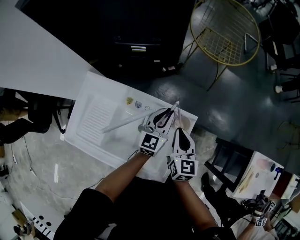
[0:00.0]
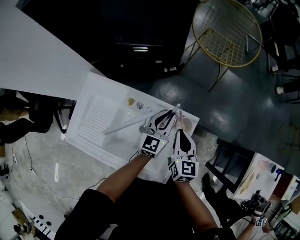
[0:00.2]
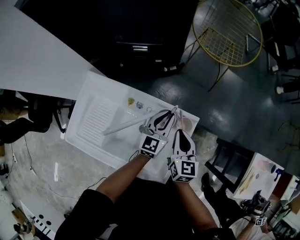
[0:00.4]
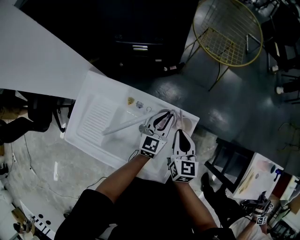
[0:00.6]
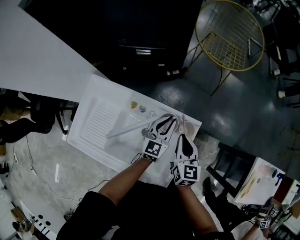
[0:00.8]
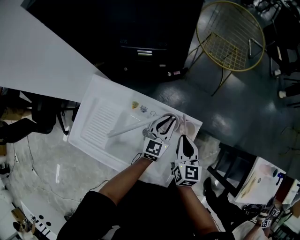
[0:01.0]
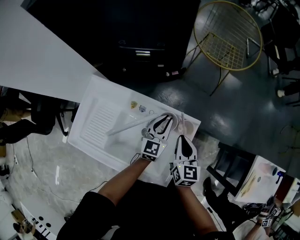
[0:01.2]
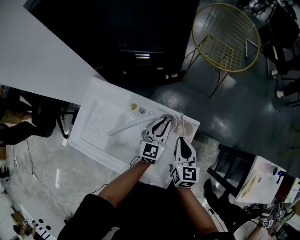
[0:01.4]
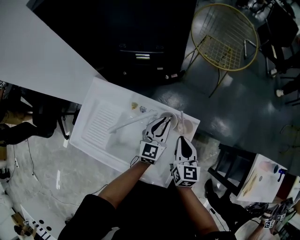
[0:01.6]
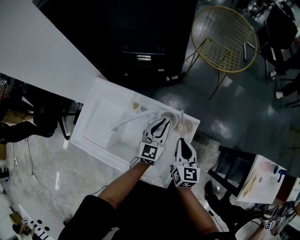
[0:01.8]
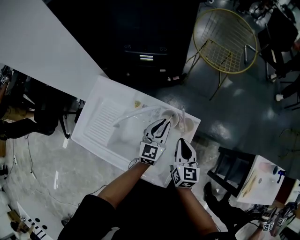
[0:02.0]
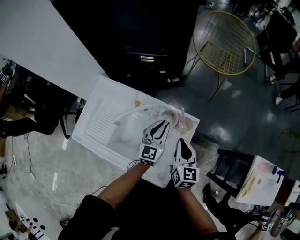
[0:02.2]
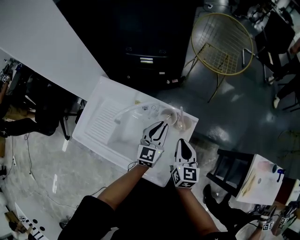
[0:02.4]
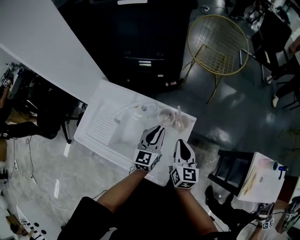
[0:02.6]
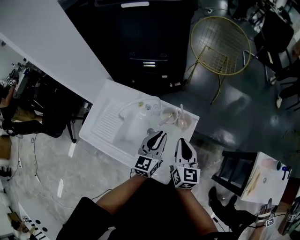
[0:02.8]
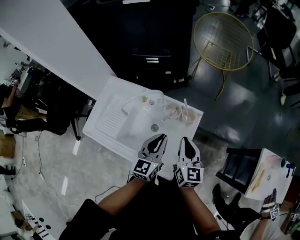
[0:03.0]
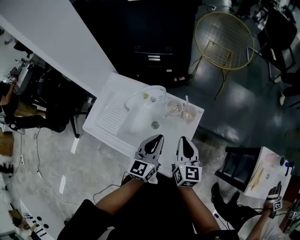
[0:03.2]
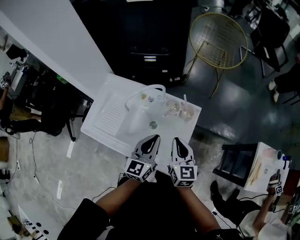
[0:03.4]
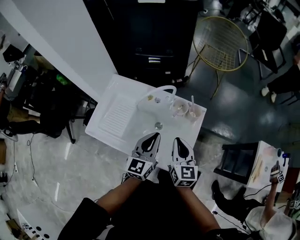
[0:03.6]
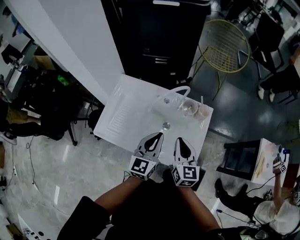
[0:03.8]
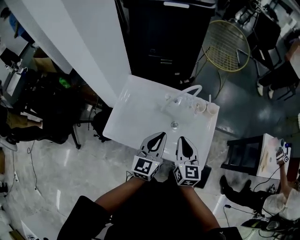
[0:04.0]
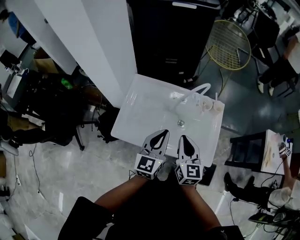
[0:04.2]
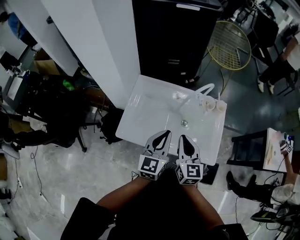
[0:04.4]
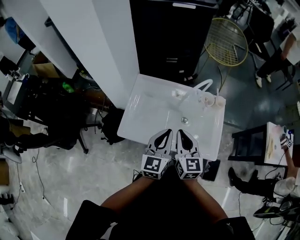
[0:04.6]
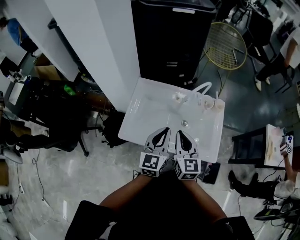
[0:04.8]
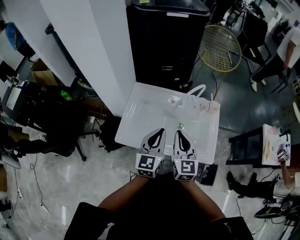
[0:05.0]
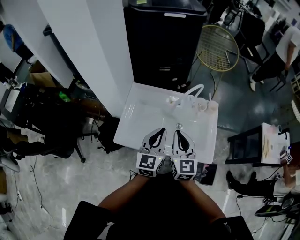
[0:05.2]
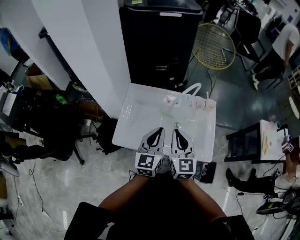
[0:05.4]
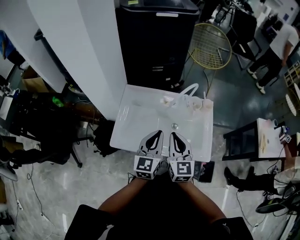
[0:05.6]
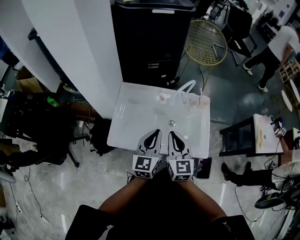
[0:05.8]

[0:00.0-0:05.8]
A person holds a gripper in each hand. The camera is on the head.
0:00.0 to 0:01.4: The grippers make only small movements.
0:01.4 to 0:02.8: The grippers both shift backward and upward by about 15 cm.
0:02.8 to 0:04.4: The grippers both shift to the left and backward by approximately 30 cm.
0:04.4 to 0:05.8: The grippers stay close to where they were, moving slightly.

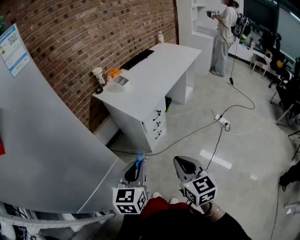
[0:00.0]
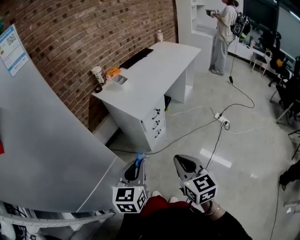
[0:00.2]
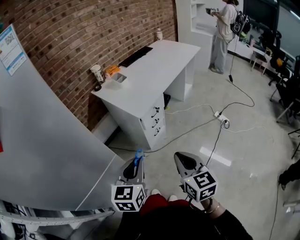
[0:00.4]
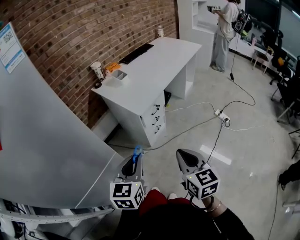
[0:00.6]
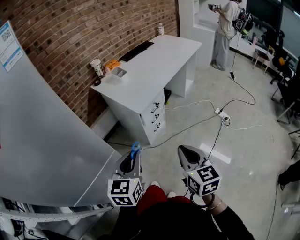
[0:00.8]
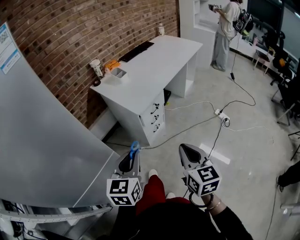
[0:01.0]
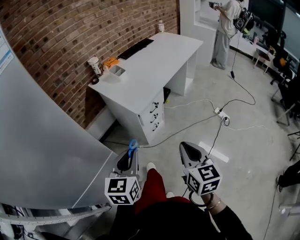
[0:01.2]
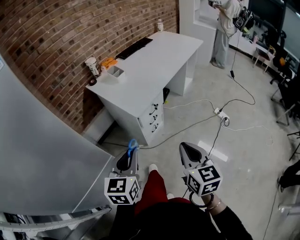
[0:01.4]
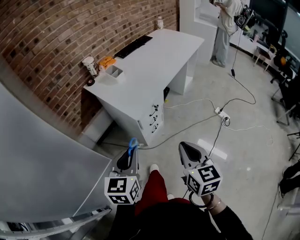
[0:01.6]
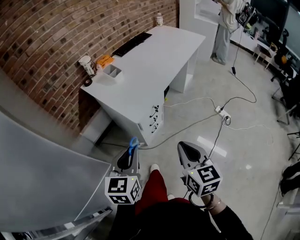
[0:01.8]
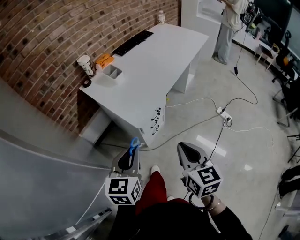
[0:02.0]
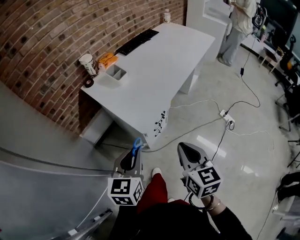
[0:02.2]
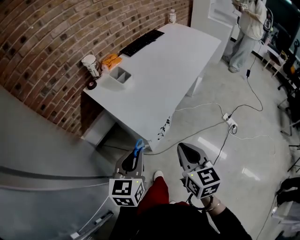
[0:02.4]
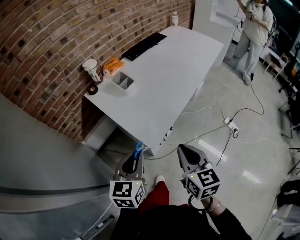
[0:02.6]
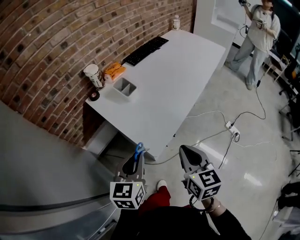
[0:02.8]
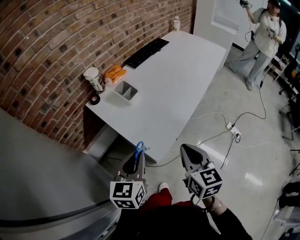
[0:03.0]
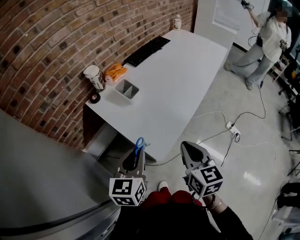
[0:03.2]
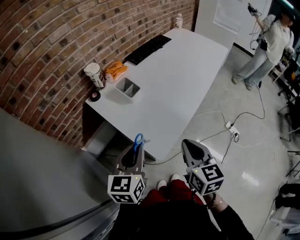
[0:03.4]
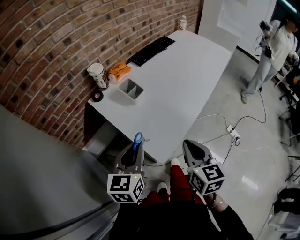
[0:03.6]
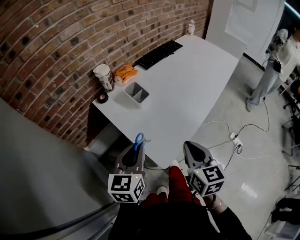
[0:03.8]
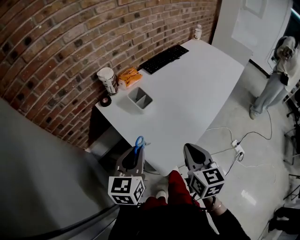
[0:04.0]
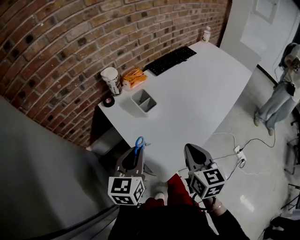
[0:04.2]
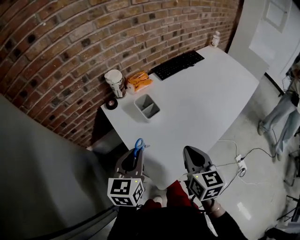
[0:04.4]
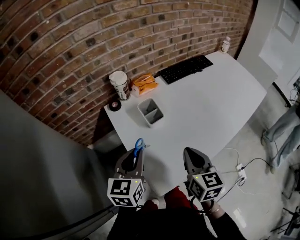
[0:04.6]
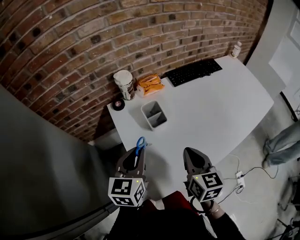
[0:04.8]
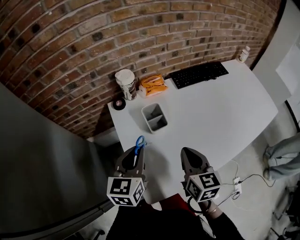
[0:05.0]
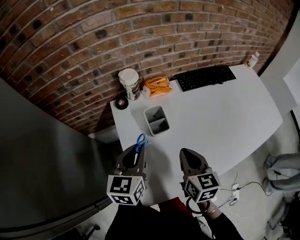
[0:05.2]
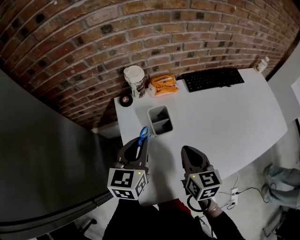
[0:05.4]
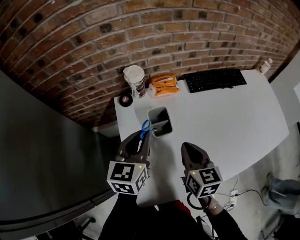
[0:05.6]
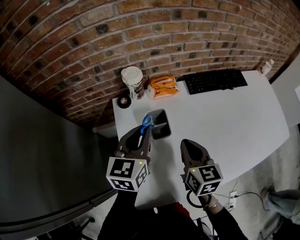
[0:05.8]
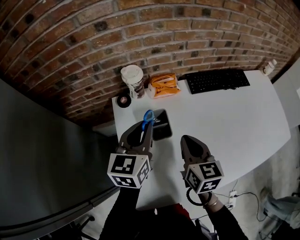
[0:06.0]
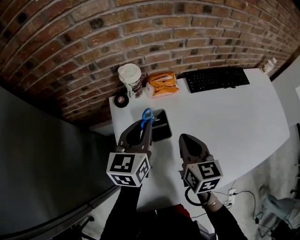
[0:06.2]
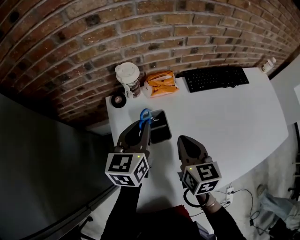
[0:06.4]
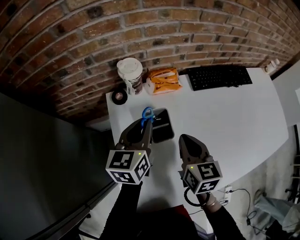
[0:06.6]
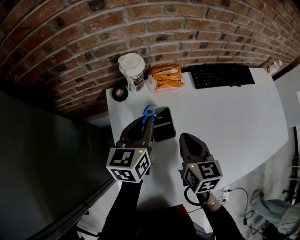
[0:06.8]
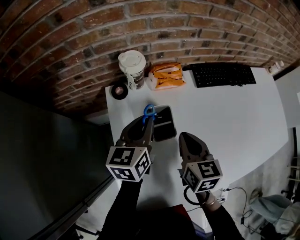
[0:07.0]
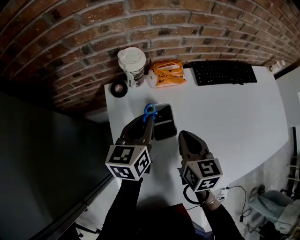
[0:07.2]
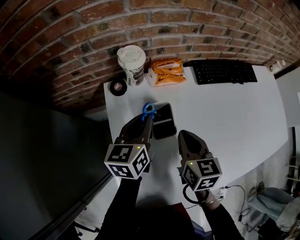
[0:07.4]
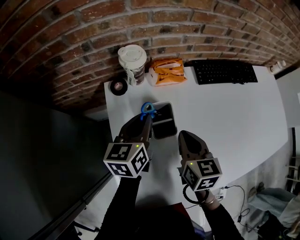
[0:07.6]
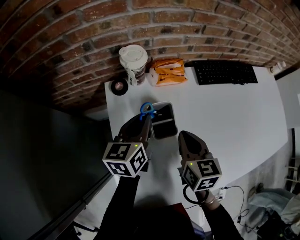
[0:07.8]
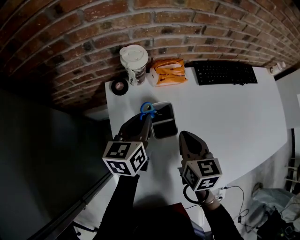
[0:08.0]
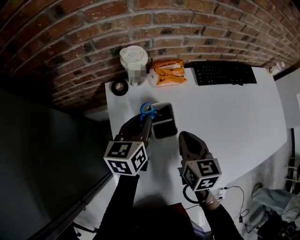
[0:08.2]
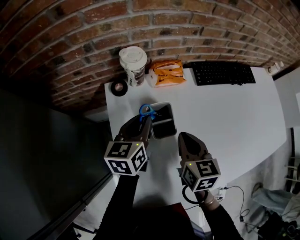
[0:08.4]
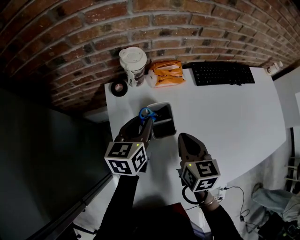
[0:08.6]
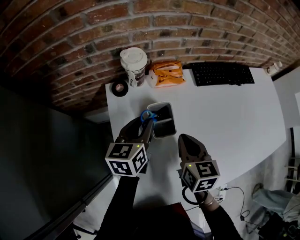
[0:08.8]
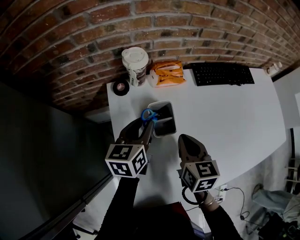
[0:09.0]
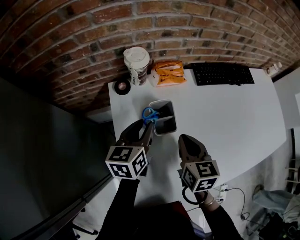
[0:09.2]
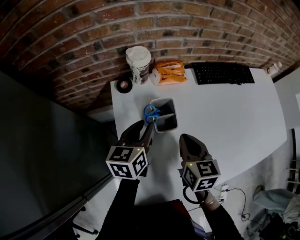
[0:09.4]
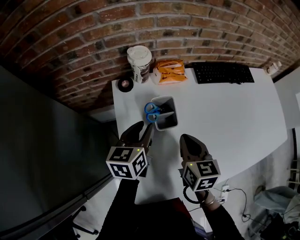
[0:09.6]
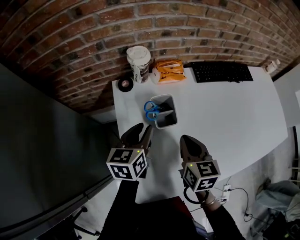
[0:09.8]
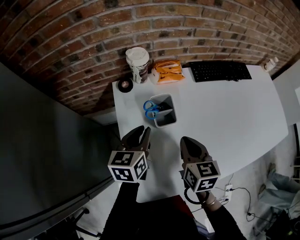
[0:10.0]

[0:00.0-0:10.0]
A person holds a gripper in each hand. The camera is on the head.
0:00.0 to 0:01.4: The left gripper travels forward by about 5 cm, while the right gripper moves forward and to the right, about 10 cm.
0:01.4 to 0:02.8: The grippers both shift forward by roughly 25 cm.
0:02.8 to 0:04.2: Both grippers travel together forward, about 15 cm.
0:04.2 to 0:05.8: The left gripper moves approximately 20 cm, and changes its angle by about 20 degrees, while the right gripper shifts by about 25 cm, and swivels about 30 degrees.
0:05.8 to 0:07.2: Both grippers travel together downward and forward, some 10 cm.
0:07.2 to 0:08.6: The grippers make only small movements.
0:08.6 to 0:10.0: The grippers both shift backward by approximately 5 cm.

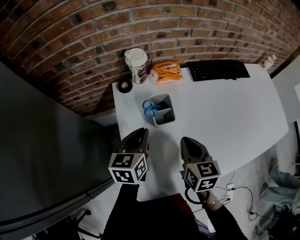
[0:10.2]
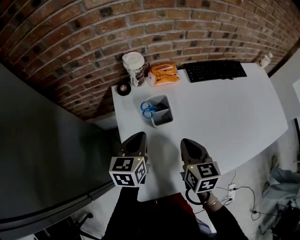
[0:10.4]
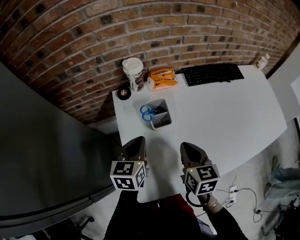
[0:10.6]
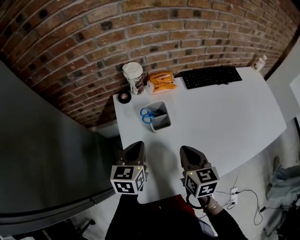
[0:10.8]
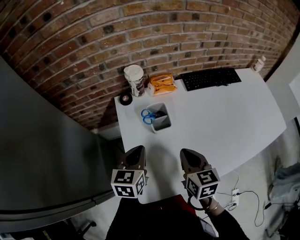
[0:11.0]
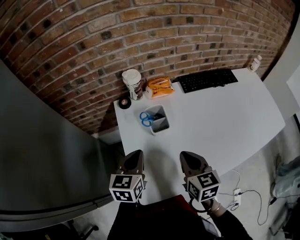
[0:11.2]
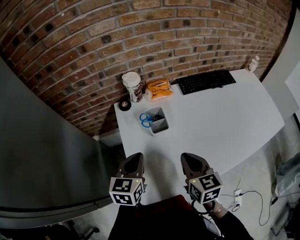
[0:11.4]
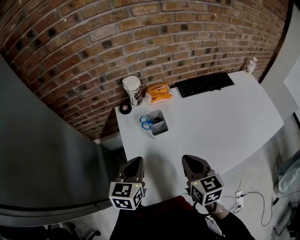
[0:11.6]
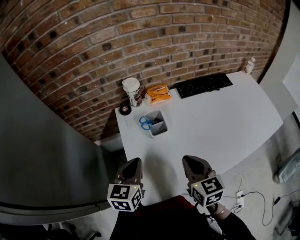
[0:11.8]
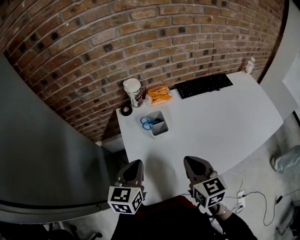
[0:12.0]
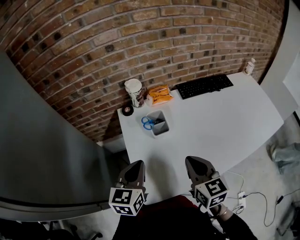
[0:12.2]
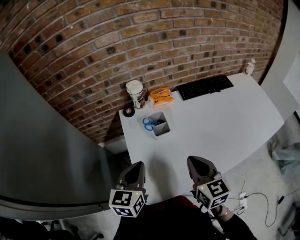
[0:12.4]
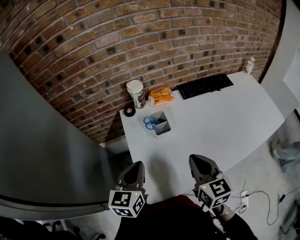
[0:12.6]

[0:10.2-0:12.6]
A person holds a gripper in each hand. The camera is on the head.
0:10.2 to 0:11.4: Both grippers travel together backward, some 5 cm.
0:11.4 to 0:12.6: The right gripper goes some 5 cm upward; the left gripper goes approximately 5 cm upward and backward.

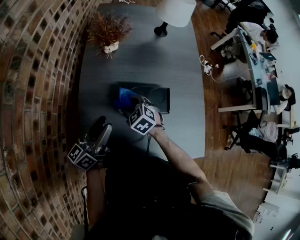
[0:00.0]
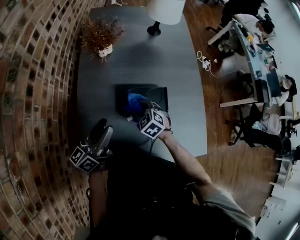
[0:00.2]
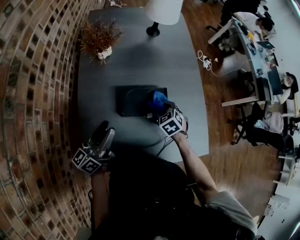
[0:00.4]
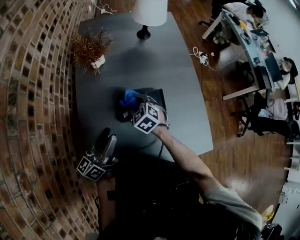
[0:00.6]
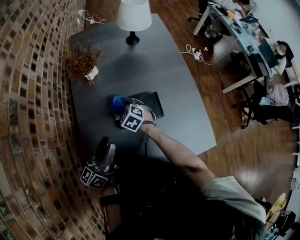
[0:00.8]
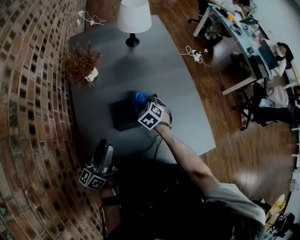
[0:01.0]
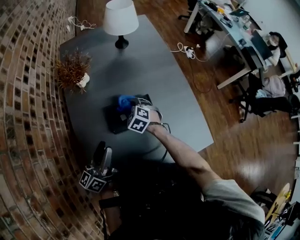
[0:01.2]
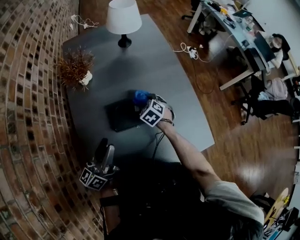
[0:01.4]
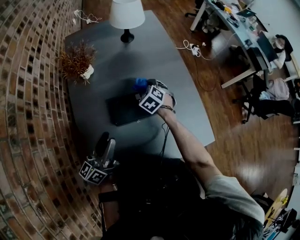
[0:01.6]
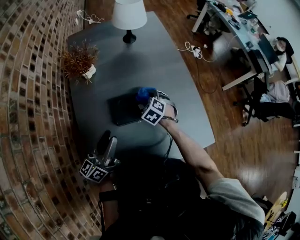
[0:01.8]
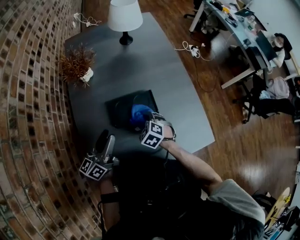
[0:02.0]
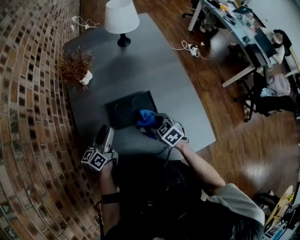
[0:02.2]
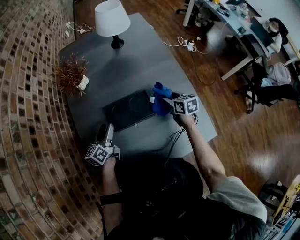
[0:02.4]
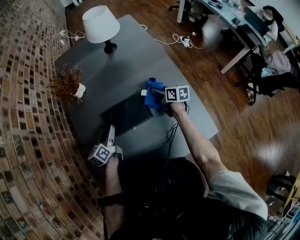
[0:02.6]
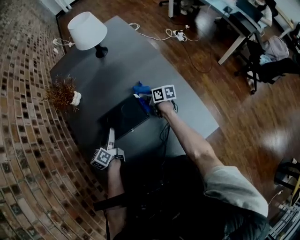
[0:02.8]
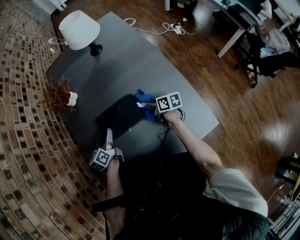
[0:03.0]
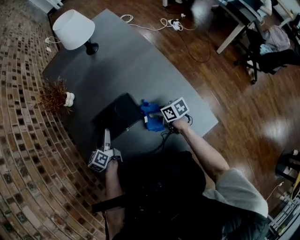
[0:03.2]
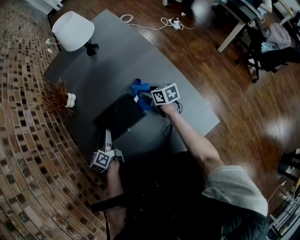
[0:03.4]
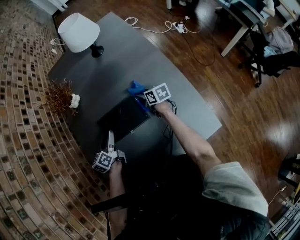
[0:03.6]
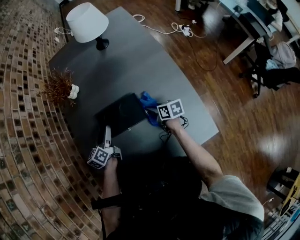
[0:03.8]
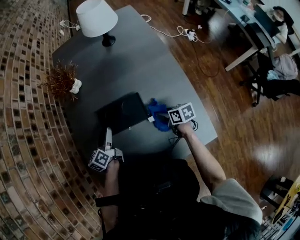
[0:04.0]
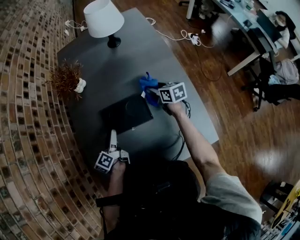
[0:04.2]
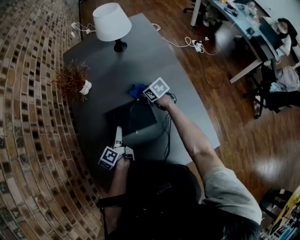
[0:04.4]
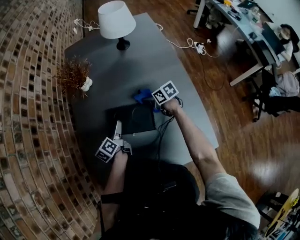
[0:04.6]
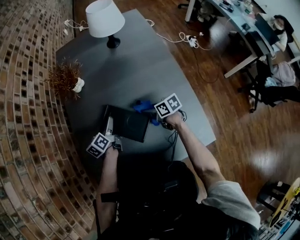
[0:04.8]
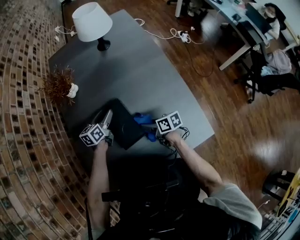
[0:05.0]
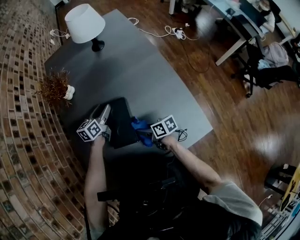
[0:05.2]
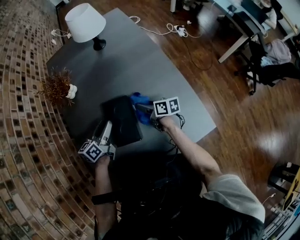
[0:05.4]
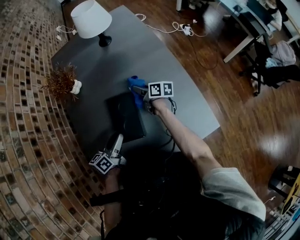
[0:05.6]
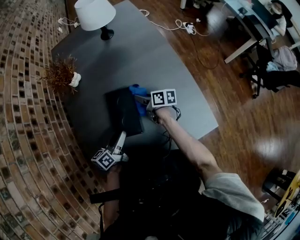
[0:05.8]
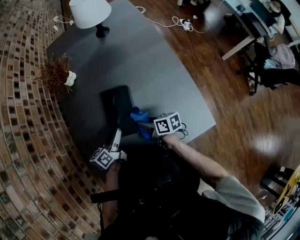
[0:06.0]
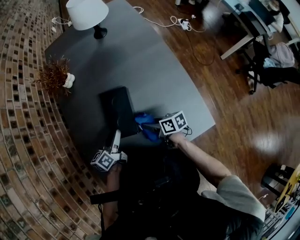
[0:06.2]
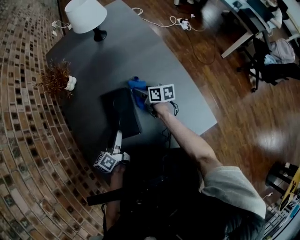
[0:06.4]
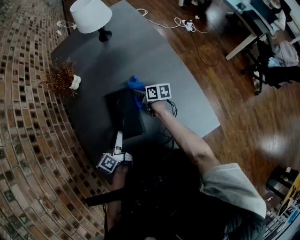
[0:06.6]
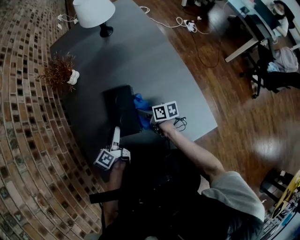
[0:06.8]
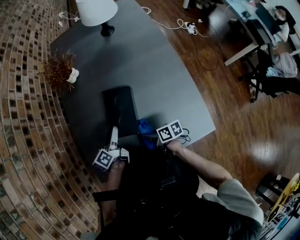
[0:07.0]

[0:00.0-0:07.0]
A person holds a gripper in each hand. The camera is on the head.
0:00.0 to 0:01.4: The right gripper goes left and right, roughly 20 cm each way, reversing 4 times, and rotates approximately 30 degrees. Meanwhile the left gripper moves to the right, about 5 cm.
0:01.4 to 0:02.8: The left gripper goes some 20 cm downward and forward, and swivels approximately 30 degrees. Meanwhile the right gripper swings left and right, some 15 cm each way, with 2 reversals, and rotates around the line of its fingers by roughly 70 degrees, clockwise from behind.
0:02.8 to 0:04.2: The right gripper swings forward and backward, about 15 cm each way, with 3 reversals, and changes its angle by some 20 degrees.
0:04.2 to 0:05.6: The right gripper changes its angle by about 30 degrees. Meanwhile the left gripper swivels some 30 degrees.
0:05.6 to 0:07.0: The left gripper changes its angle by approximately 30 degrees. Meanwhile the right gripper moves some 30 cm, and changes its angle by some 30 degrees.
